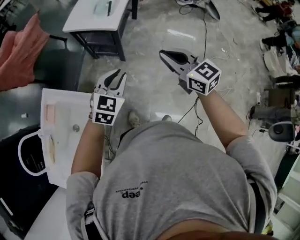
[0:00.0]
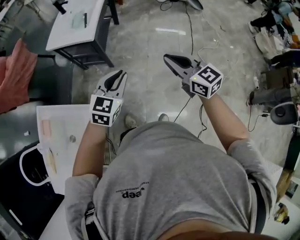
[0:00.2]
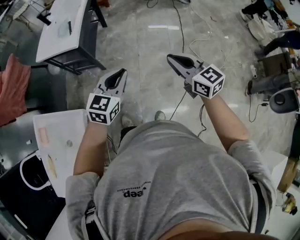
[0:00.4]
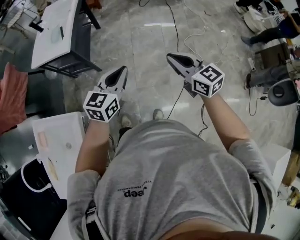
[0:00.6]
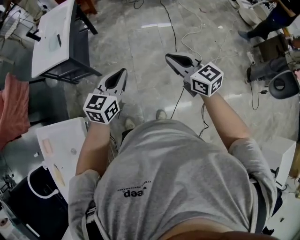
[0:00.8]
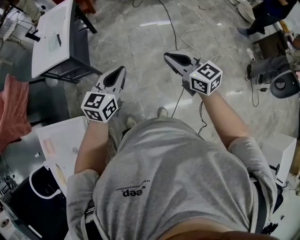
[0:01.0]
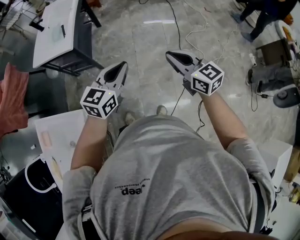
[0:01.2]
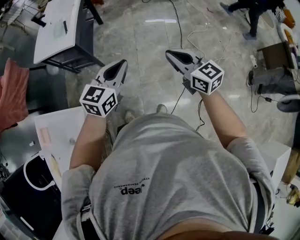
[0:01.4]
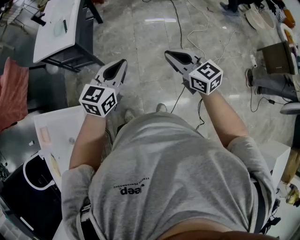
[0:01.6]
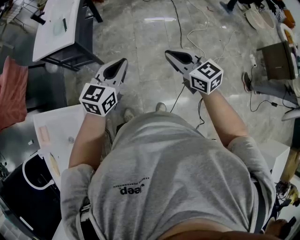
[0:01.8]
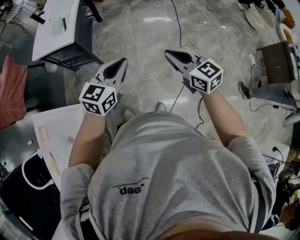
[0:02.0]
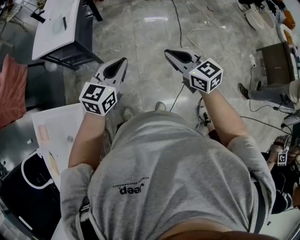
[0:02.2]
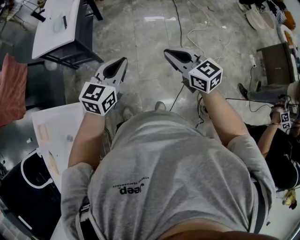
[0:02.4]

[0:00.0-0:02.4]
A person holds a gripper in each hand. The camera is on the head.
0:00.0 to 0:01.2: The grippers both shift to the right by about 25 cm. The left gripper swivels about 30 degrees. Meanwhile the right gripper swivels about 20 degrees.
0:01.2 to 0:02.4: There are only small adjustments of the grippers.

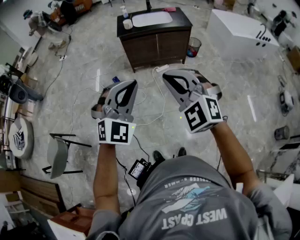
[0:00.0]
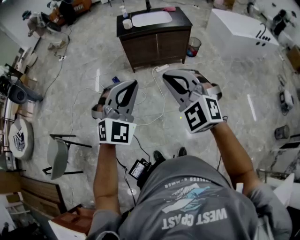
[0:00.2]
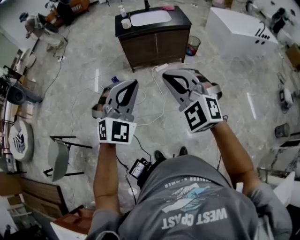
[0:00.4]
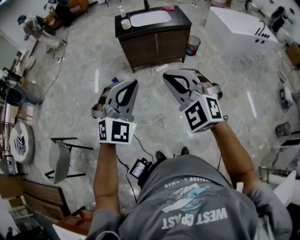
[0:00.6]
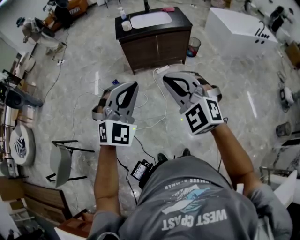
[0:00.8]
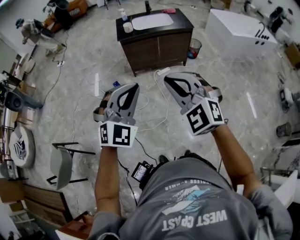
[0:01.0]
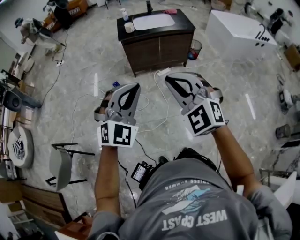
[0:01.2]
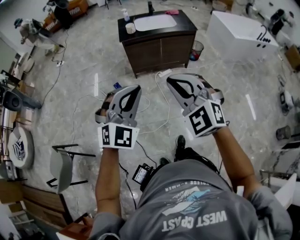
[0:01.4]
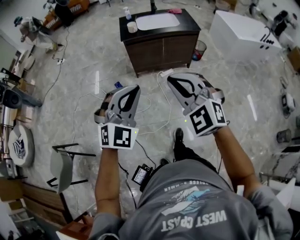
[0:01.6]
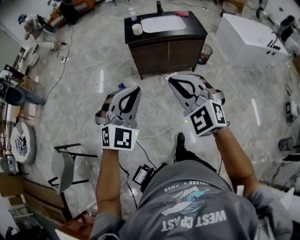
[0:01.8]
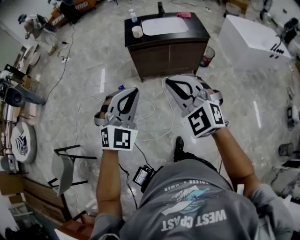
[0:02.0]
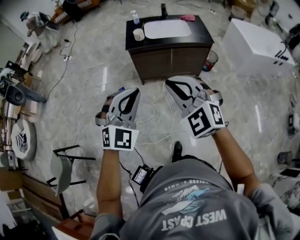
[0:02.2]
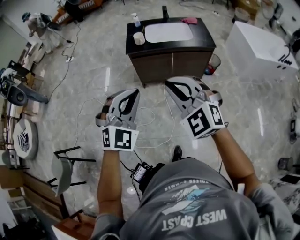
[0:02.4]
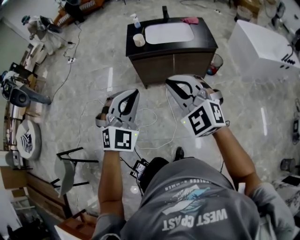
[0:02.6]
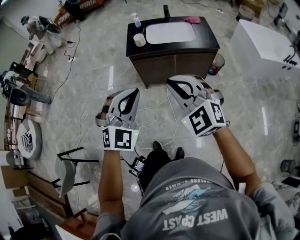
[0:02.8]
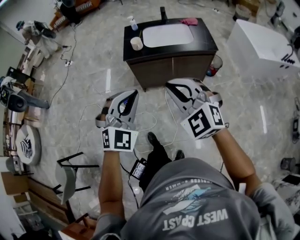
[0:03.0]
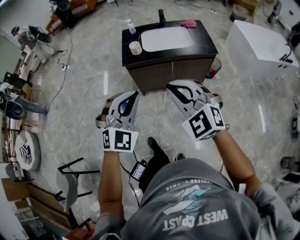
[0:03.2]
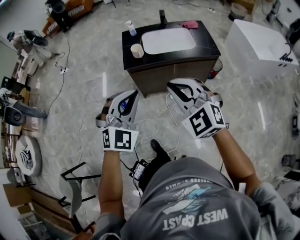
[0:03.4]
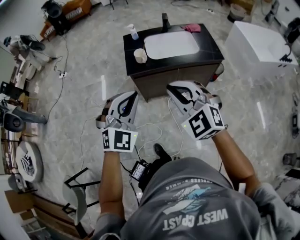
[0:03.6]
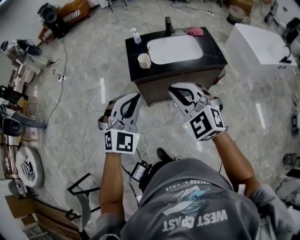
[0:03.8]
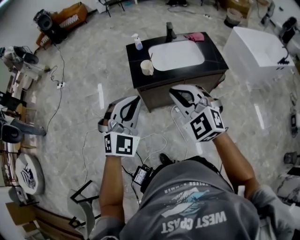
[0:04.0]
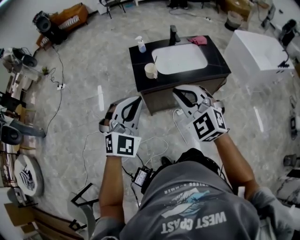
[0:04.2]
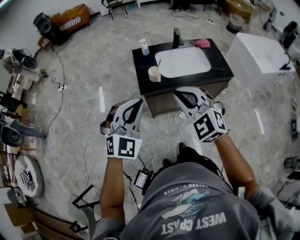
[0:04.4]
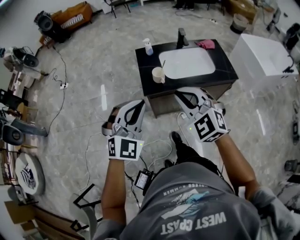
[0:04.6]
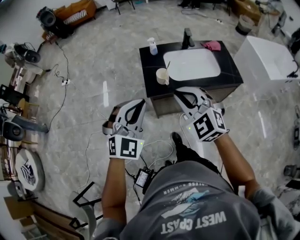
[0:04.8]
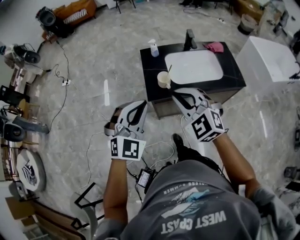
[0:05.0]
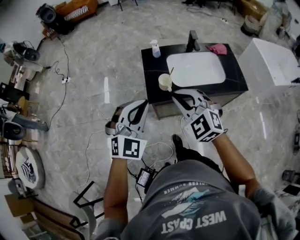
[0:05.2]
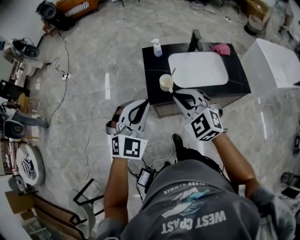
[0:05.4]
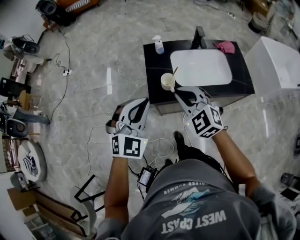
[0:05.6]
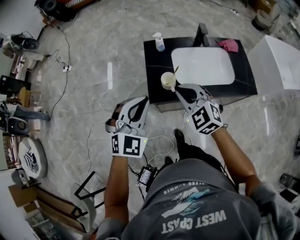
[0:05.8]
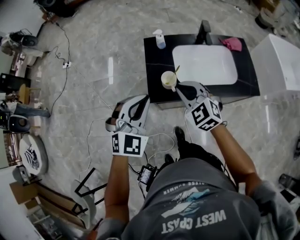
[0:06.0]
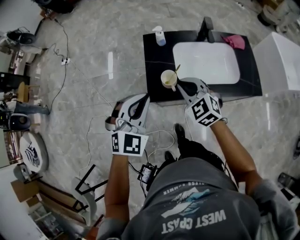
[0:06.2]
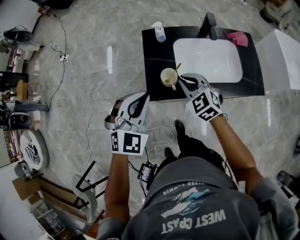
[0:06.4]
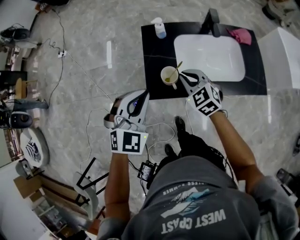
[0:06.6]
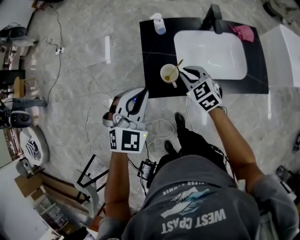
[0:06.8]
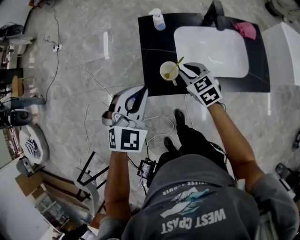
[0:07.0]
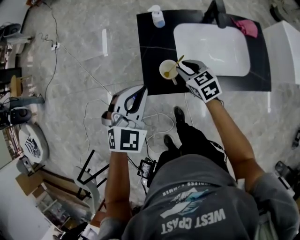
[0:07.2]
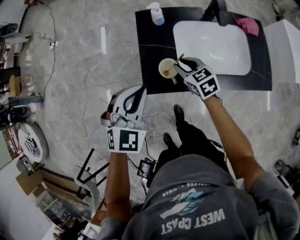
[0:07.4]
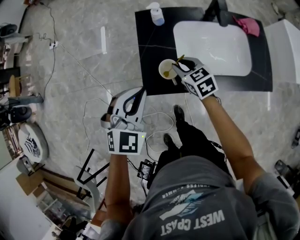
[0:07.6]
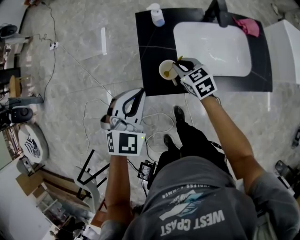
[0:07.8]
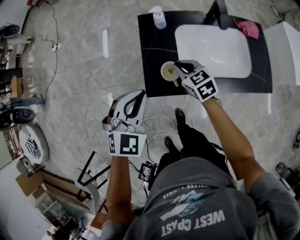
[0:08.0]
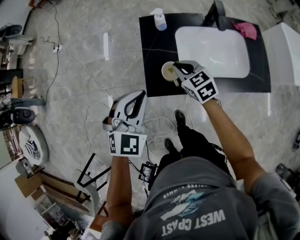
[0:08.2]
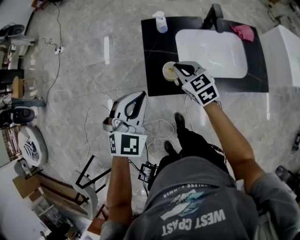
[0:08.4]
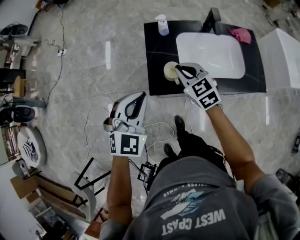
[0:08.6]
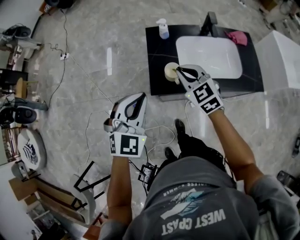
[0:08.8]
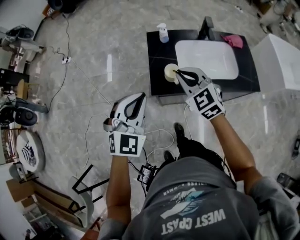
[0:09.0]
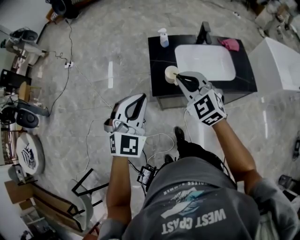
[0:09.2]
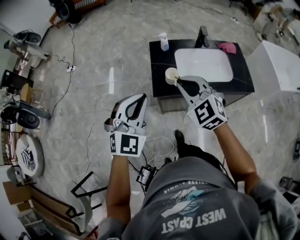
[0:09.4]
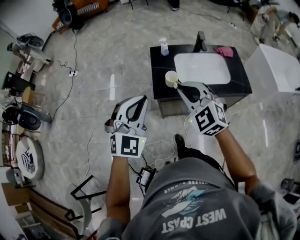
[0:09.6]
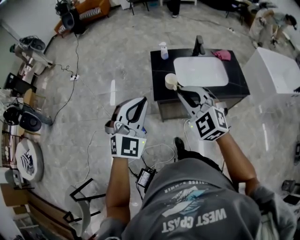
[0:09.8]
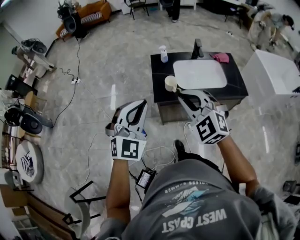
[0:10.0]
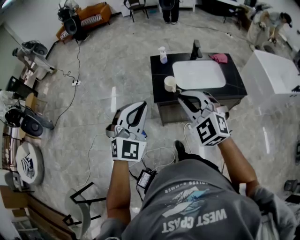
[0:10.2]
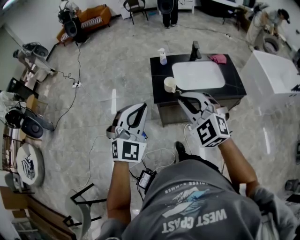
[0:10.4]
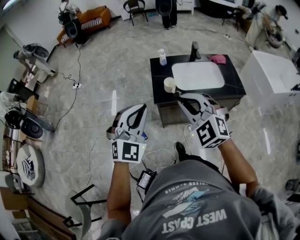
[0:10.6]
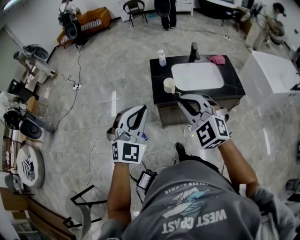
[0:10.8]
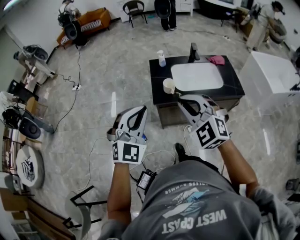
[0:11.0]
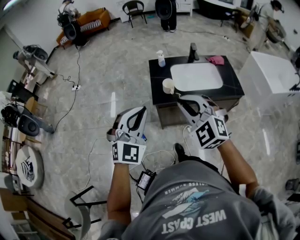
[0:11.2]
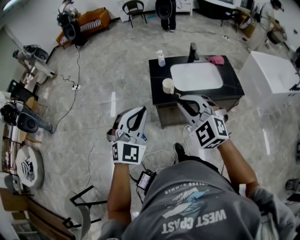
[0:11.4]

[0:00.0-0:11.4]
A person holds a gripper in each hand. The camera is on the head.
0:00.0 to 0:01.4: Both grippers move forward and to the left, some 10 cm.
0:01.4 to 0:02.8: The two grippers go roughly 30 cm forward.
0:02.8 to 0:04.2: The grippers both shift forward and to the left by approximately 30 cm.
0:04.2 to 0:05.6: The left gripper goes roughly 15 cm forward, while the right gripper moves forward and downward, about 20 cm.
0:05.6 to 0:07.2: The left gripper moves downward and forward, roughly 15 cm; the right gripper travels downward and forward by about 25 cm, turns by about 40 degrees, and opens.
0:07.2 to 0:08.6: The left gripper shifts by about 5 cm; the right gripper travels upward by some 10 cm, and closes up.
0:08.6 to 0:10.0: The right gripper goes approximately 35 cm backward and upward, and changes its angle by about 40 degrees. The left gripper heads backward and upward, covering some 20 cm, and turns by some 20 degrees.
0:10.0 to 0:11.4: The grippers stay close to where they were, moving slightly.

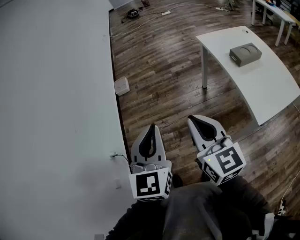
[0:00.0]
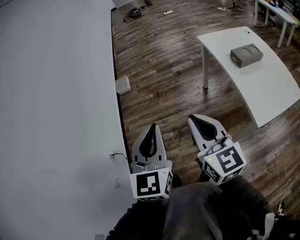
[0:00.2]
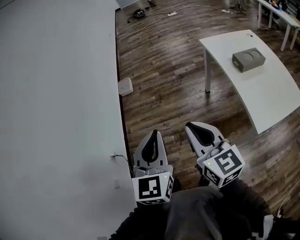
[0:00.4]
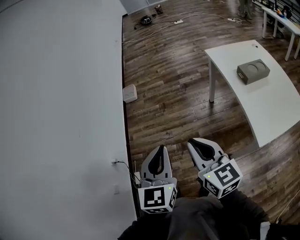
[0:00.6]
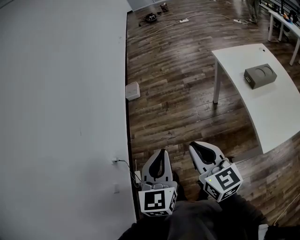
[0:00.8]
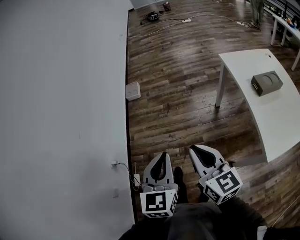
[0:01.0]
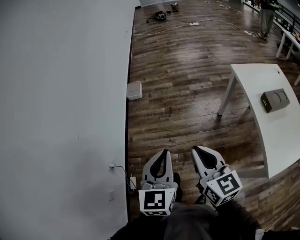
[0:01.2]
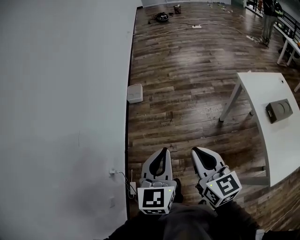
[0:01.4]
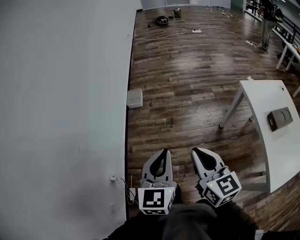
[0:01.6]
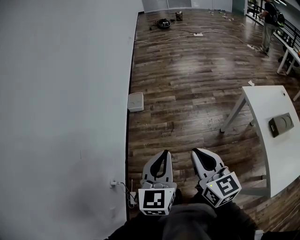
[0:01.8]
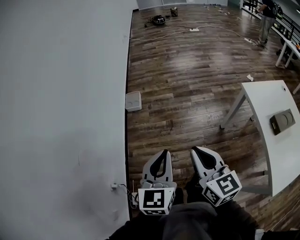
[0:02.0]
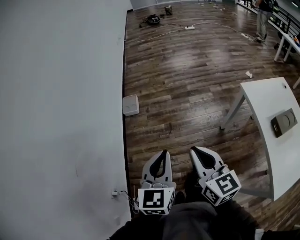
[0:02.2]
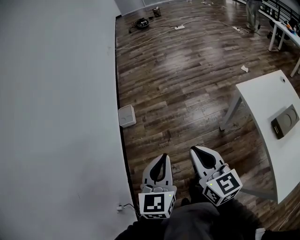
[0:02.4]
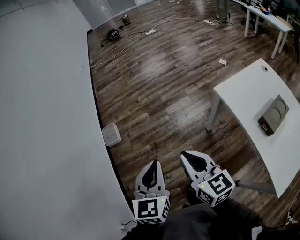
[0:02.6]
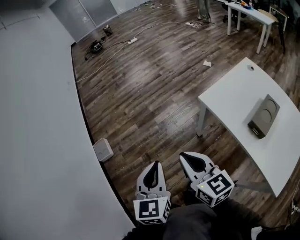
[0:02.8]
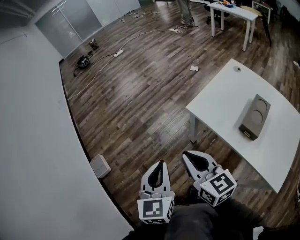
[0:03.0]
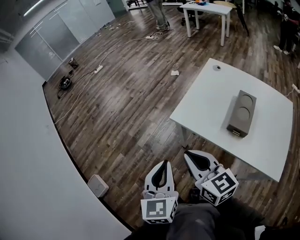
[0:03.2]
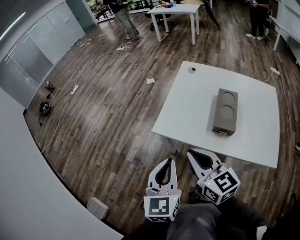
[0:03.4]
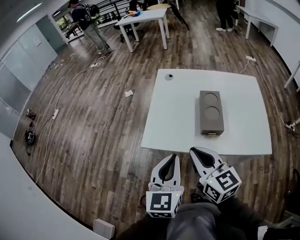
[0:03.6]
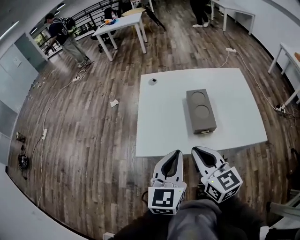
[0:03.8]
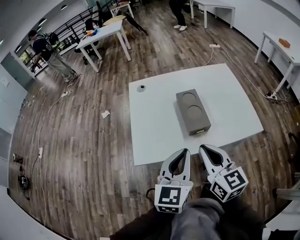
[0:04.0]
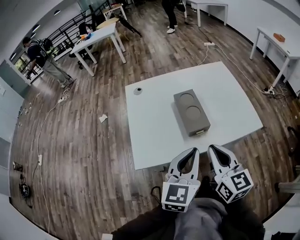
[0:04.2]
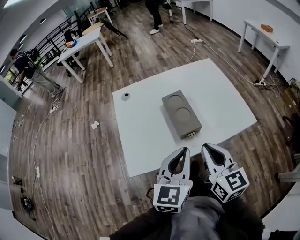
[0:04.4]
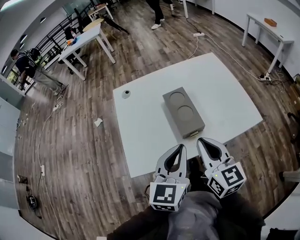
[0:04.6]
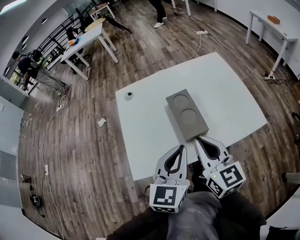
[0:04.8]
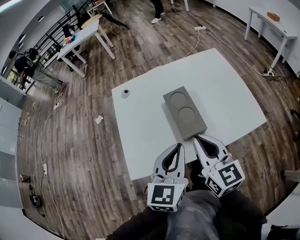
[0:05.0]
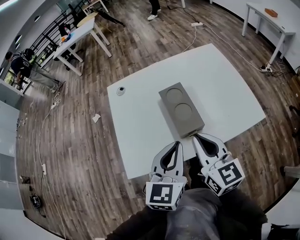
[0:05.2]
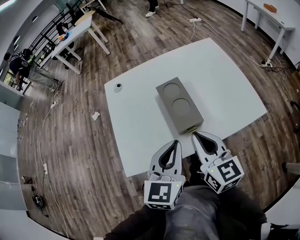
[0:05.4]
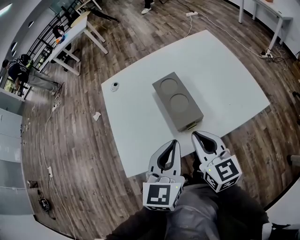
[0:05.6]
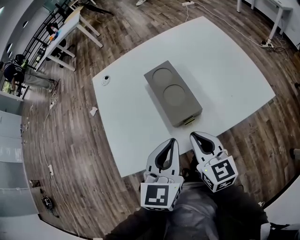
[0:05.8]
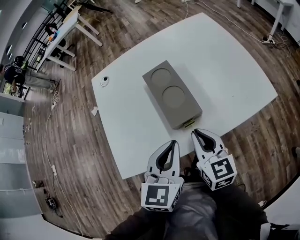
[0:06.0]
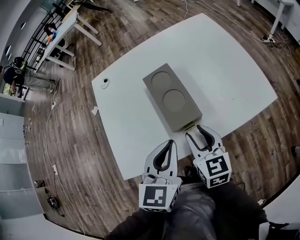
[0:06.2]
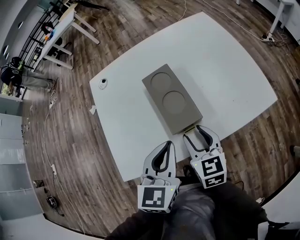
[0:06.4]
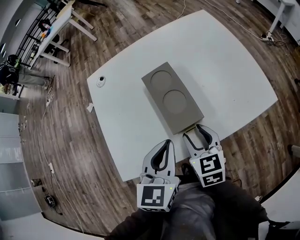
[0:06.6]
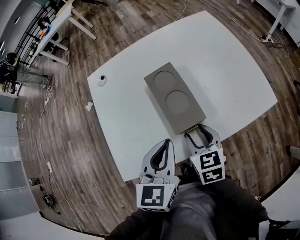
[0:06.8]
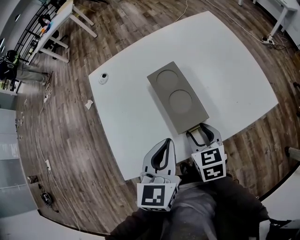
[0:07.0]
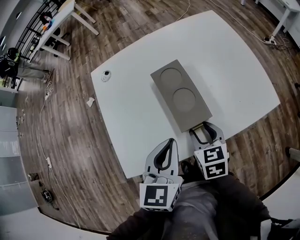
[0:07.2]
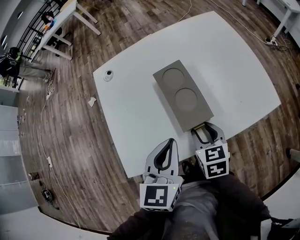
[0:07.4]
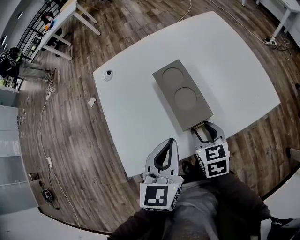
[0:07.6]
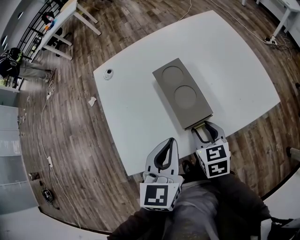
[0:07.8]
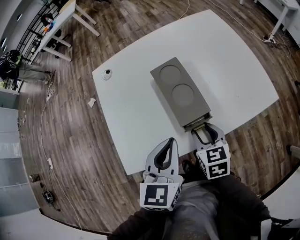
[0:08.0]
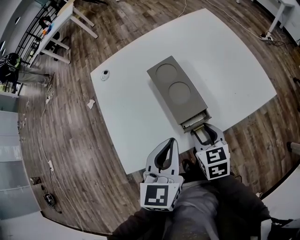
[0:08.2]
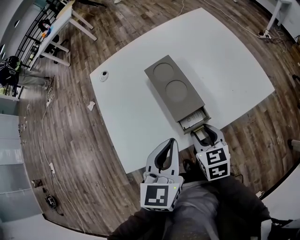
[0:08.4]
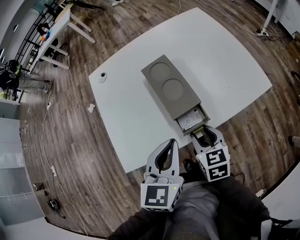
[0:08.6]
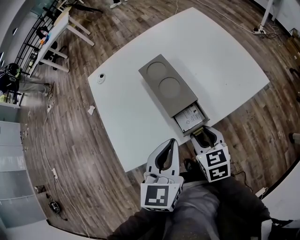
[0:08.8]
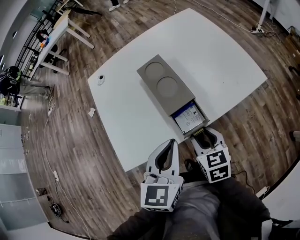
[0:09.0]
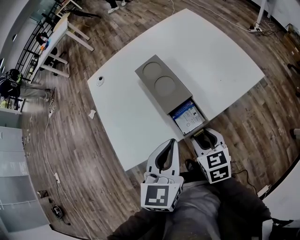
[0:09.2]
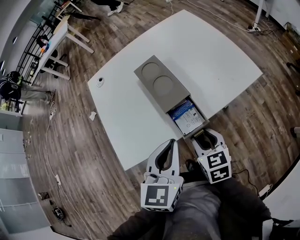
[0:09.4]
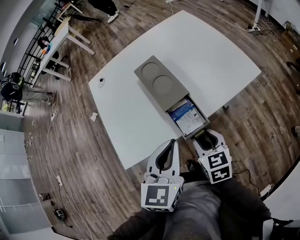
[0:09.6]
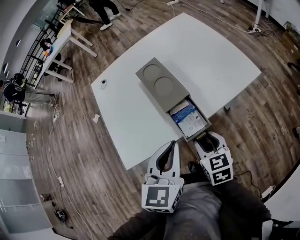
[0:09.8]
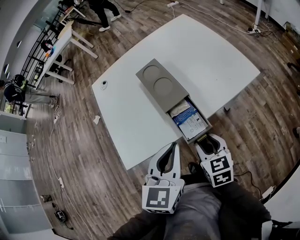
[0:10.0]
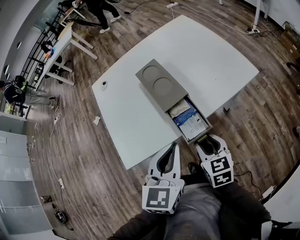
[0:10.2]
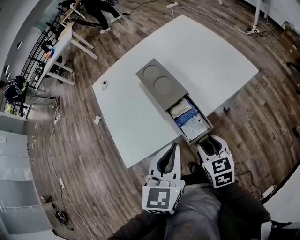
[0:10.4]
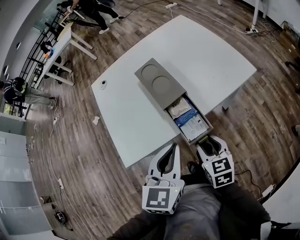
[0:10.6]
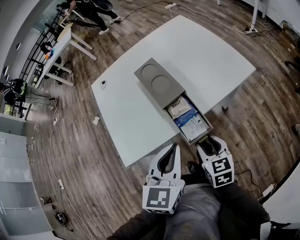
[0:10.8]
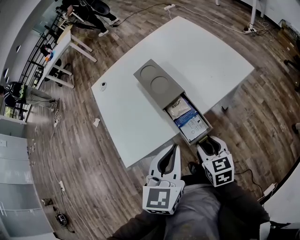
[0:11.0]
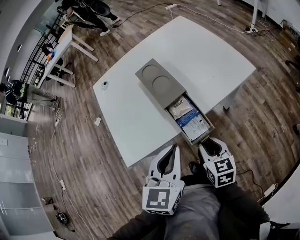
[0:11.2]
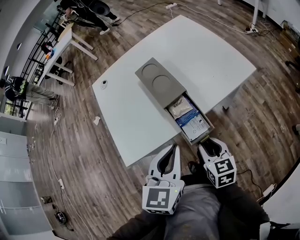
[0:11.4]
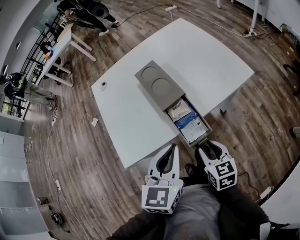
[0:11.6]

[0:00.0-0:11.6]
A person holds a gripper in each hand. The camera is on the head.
0:00.0 to 0:01.4: Both grippers move forward and to the left, roughly 20 cm.
0:01.4 to 0:02.8: Both grippers travel together forward and to the right, approximately 35 cm. The left gripper changes its angle by about 20 degrees; the right gripper turns by about 20 degrees.
0:02.8 to 0:04.4: The right gripper shifts by about 30 cm, and turns by roughly 90 degrees. The left gripper ends up about 40 cm from where it was, and turns by approximately 90 degrees.
0:04.4 to 0:05.8: The right gripper moves downward, some 15 cm. The left gripper moves downward, some 10 cm.
0:05.8 to 0:07.2: The right gripper ends up about 5 cm from where it was, turns by about 30 degrees, and opens.
0:07.2 to 0:08.8: Both grippers travel together backward, approximately 5 cm.
0:08.8 to 0:10.2: Both grippers travel together backward, roughly 5 cm.
0:10.2 to 0:11.6: The grippers move only a little.
